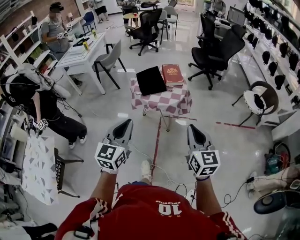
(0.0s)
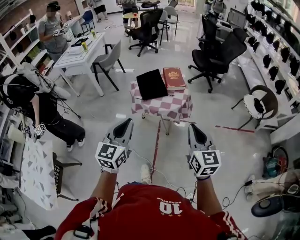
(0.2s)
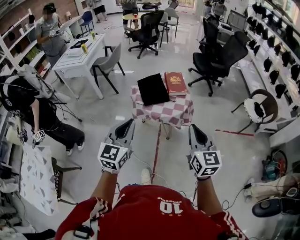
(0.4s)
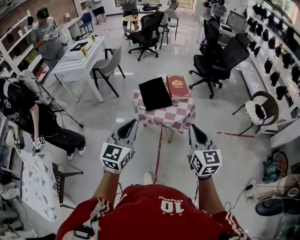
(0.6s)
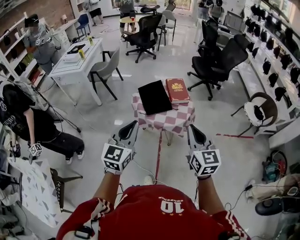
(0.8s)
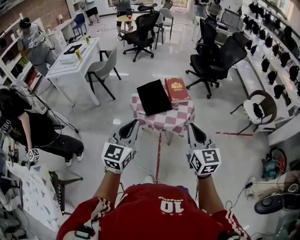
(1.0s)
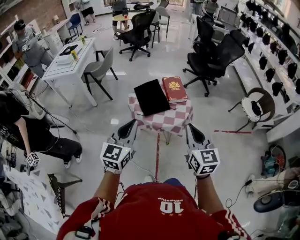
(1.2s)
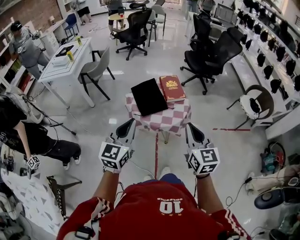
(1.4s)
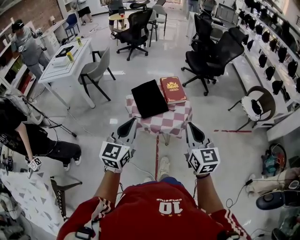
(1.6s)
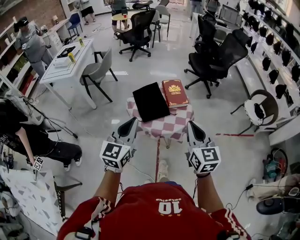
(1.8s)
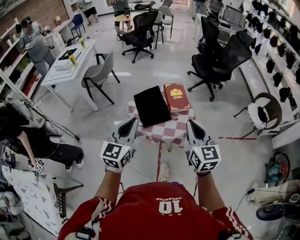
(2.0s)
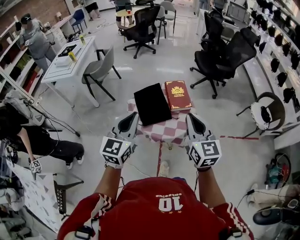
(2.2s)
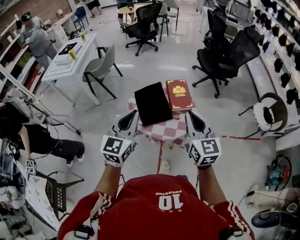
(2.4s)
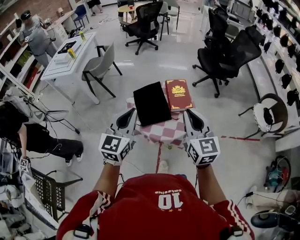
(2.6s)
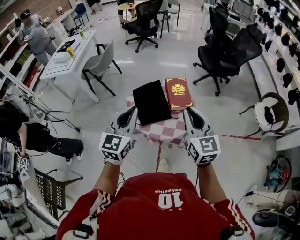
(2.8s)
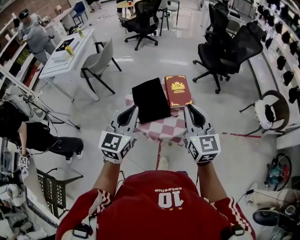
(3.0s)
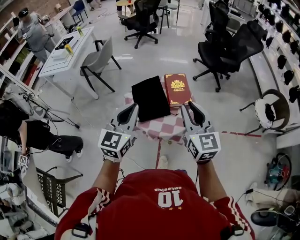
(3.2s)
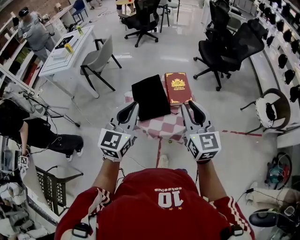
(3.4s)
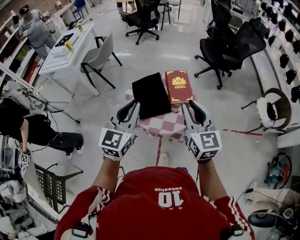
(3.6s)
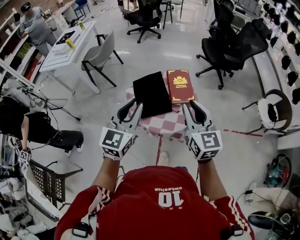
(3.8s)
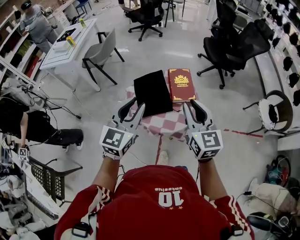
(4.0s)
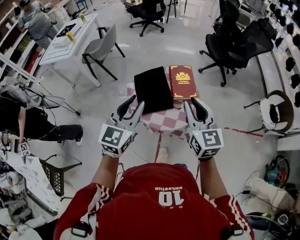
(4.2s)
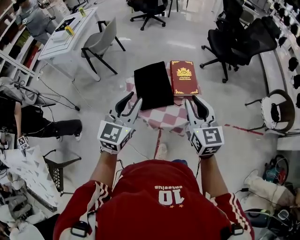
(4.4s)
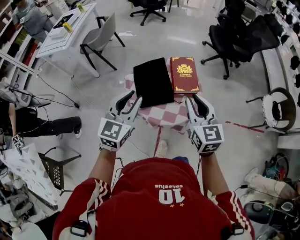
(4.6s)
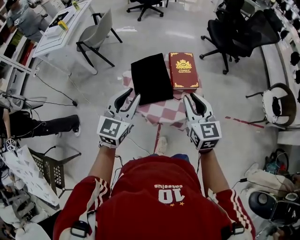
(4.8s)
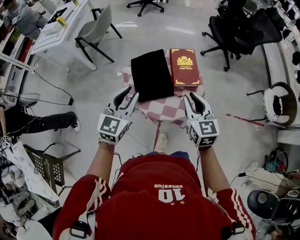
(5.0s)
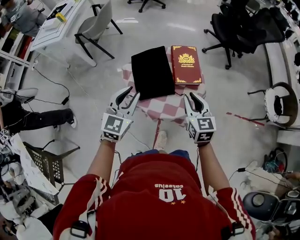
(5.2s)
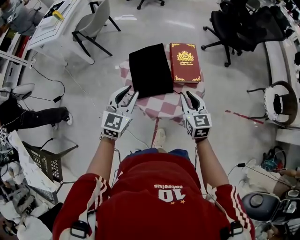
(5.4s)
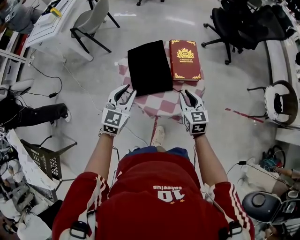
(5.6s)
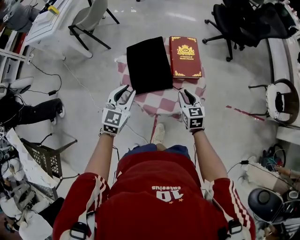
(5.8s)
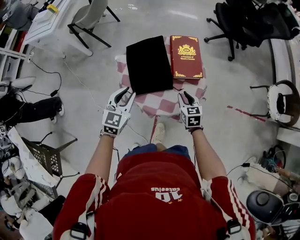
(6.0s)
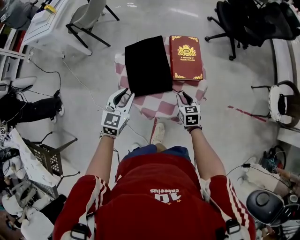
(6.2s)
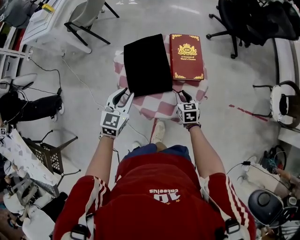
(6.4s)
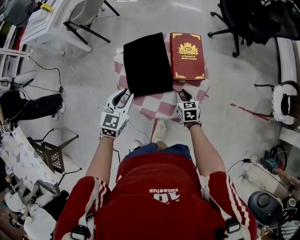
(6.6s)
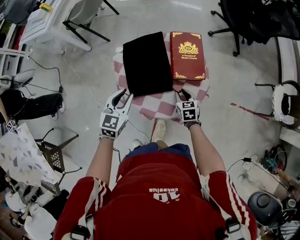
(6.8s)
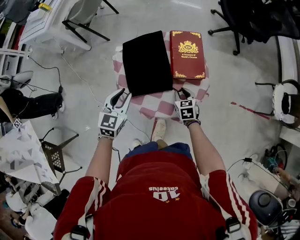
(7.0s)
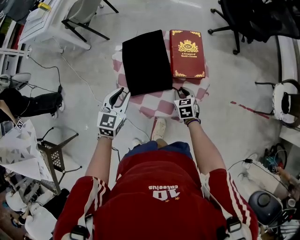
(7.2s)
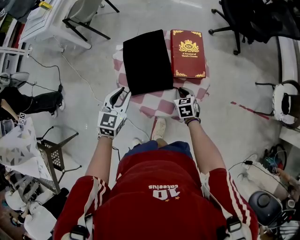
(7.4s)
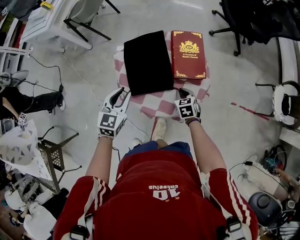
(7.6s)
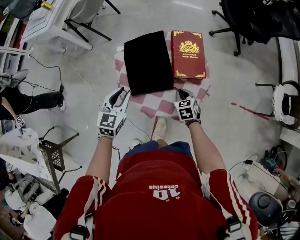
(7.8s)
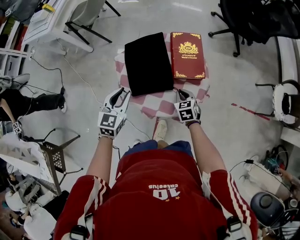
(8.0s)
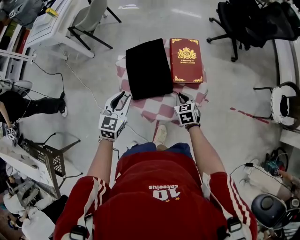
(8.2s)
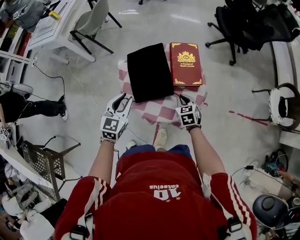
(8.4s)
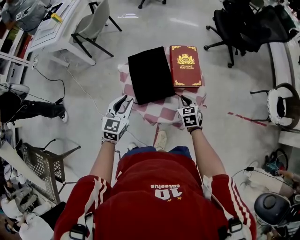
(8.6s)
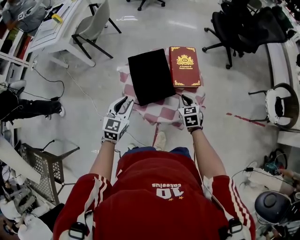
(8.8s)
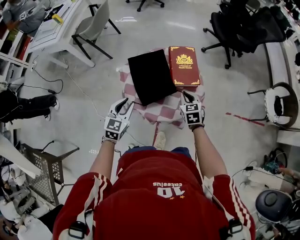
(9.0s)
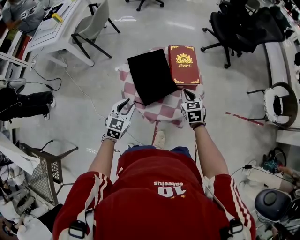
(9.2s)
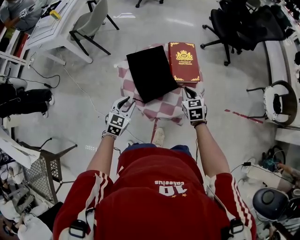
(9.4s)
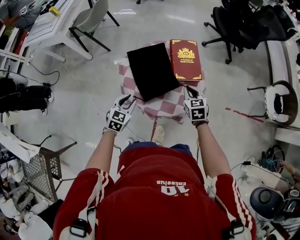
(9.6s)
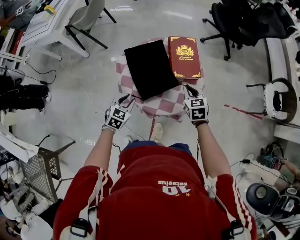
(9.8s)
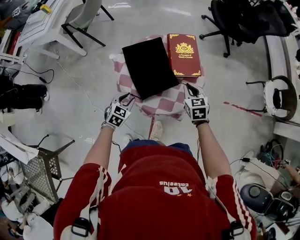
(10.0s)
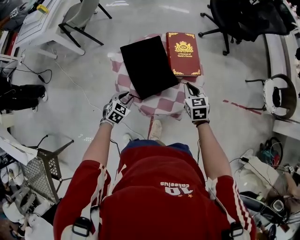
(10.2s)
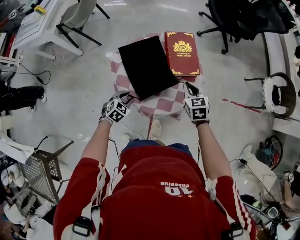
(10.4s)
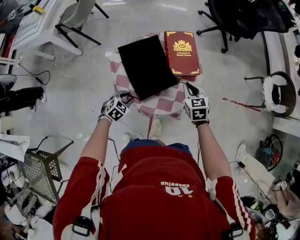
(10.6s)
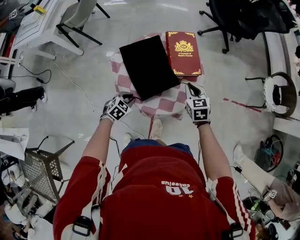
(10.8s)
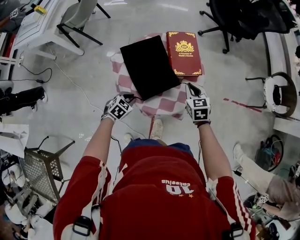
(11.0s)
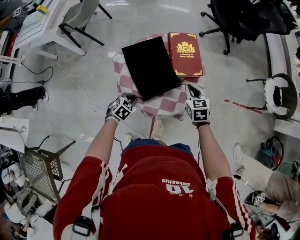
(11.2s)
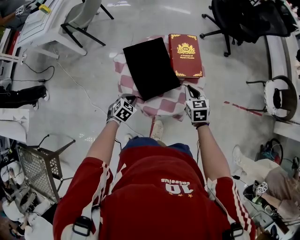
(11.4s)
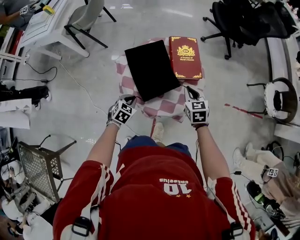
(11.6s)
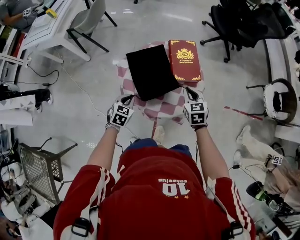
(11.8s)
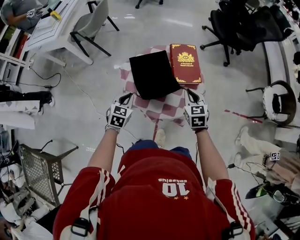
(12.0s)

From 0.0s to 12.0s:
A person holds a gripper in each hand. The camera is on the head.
From 0.0s to 1.6s: The left gripper goes about 25 cm forward; the right gripper is displaced forward and to the left by roughly 25 cm.
From 1.6s to 3.0s: The two grippers go some 15 cm forward.
From 3.0s to 4.4s: The left gripper opens up; the right gripper shifts approximately 5 cm downward.
From 4.4s to 6.0s: The two grippers go about 30 cm downward. The right gripper rotates roughly 30 degrees.
From 6.0s to 7.6s: The right gripper shifts about 10 cm downward.
From 7.6s to 9.0s: The right gripper is displaced upward by roughly 15 cm.
From 9.0s to 10.4s: The left gripper goes some 20 cm downward, and swivels approximately 30 degrees.
From 10.4s to 12.0s: The right gripper moves upward, roughly 5 cm. Meanwhile the left gripper goes some 15 cm upward, swivels about 30 degrees, and closes its fingers.

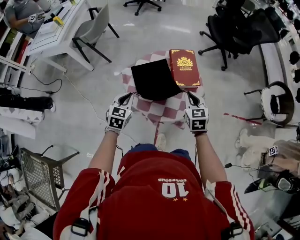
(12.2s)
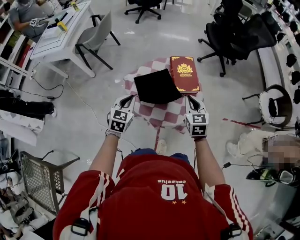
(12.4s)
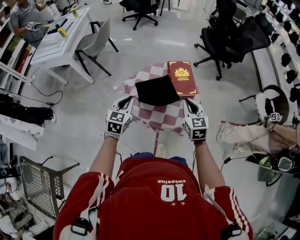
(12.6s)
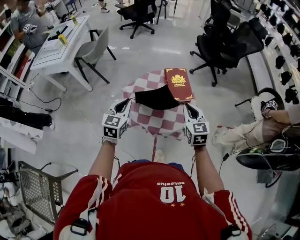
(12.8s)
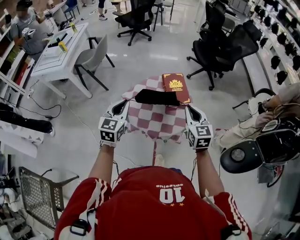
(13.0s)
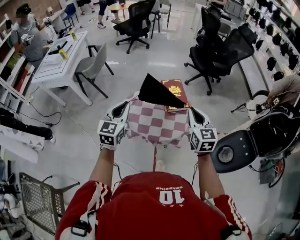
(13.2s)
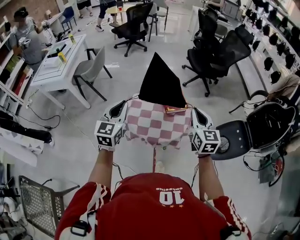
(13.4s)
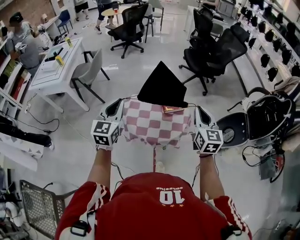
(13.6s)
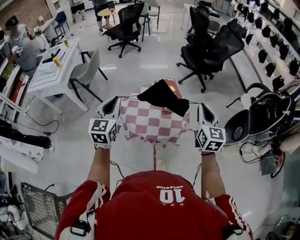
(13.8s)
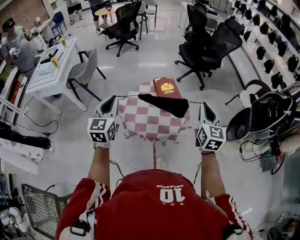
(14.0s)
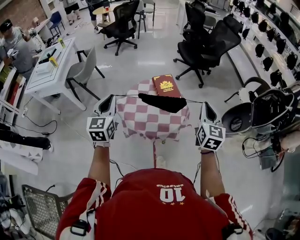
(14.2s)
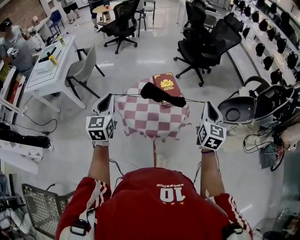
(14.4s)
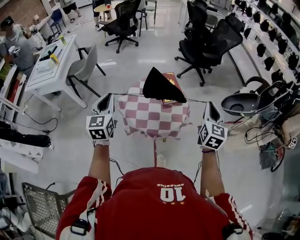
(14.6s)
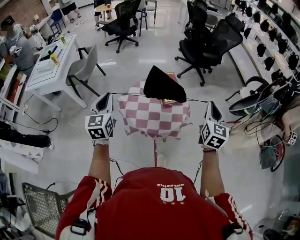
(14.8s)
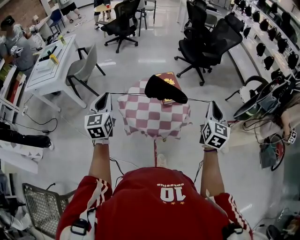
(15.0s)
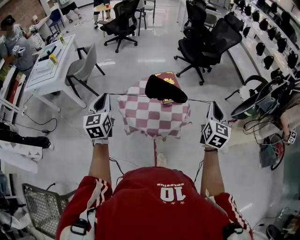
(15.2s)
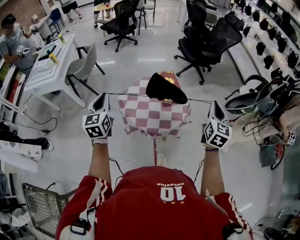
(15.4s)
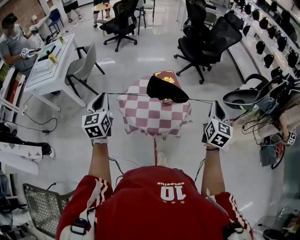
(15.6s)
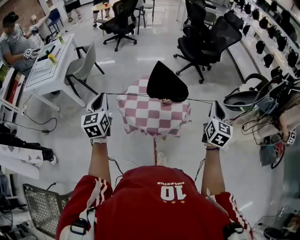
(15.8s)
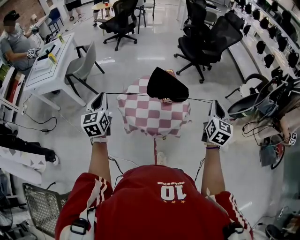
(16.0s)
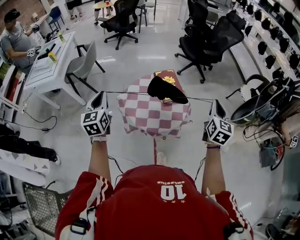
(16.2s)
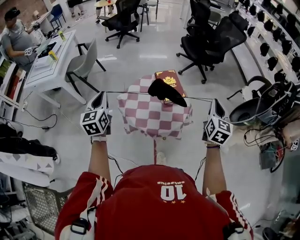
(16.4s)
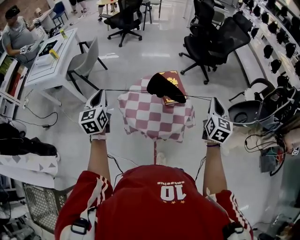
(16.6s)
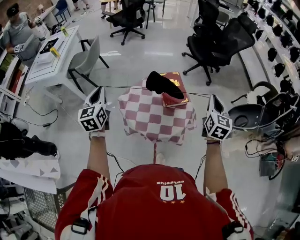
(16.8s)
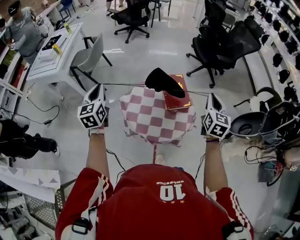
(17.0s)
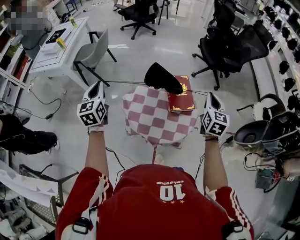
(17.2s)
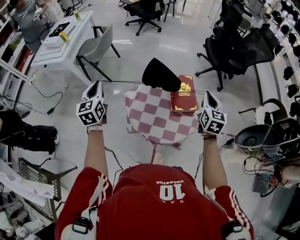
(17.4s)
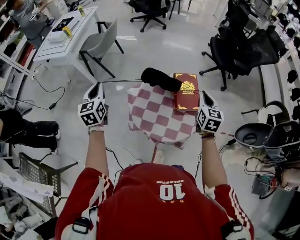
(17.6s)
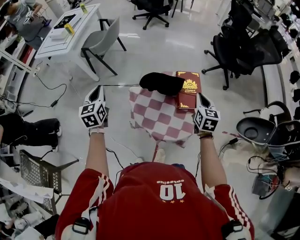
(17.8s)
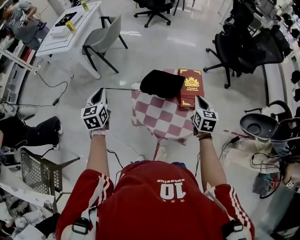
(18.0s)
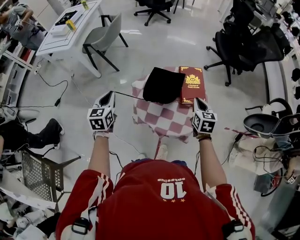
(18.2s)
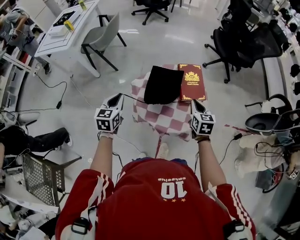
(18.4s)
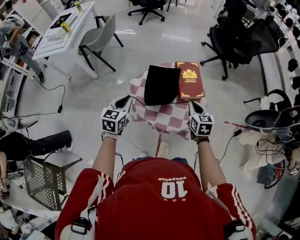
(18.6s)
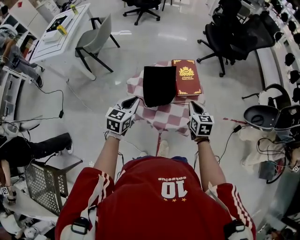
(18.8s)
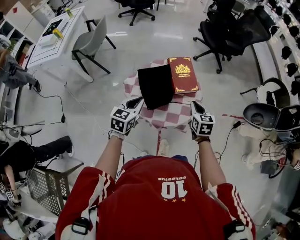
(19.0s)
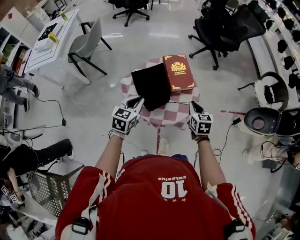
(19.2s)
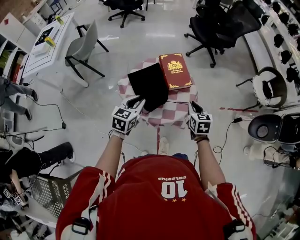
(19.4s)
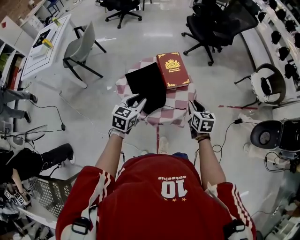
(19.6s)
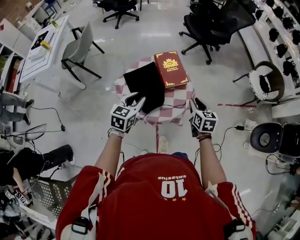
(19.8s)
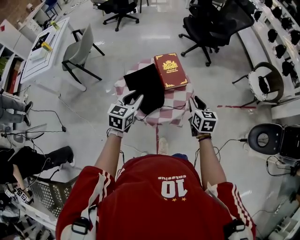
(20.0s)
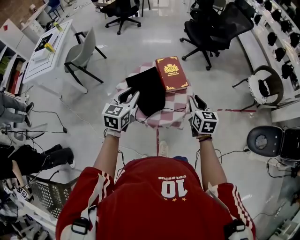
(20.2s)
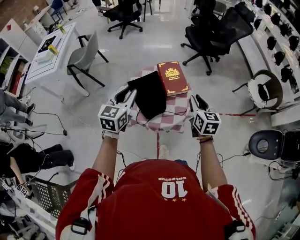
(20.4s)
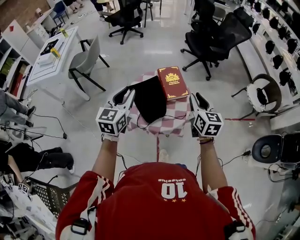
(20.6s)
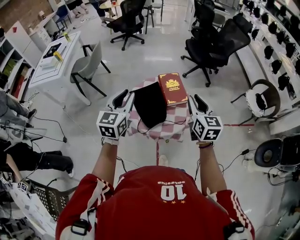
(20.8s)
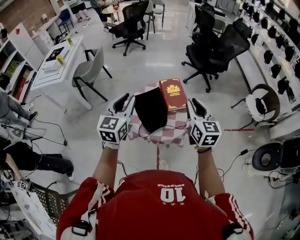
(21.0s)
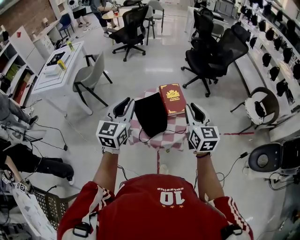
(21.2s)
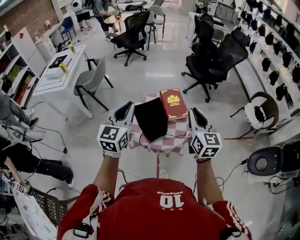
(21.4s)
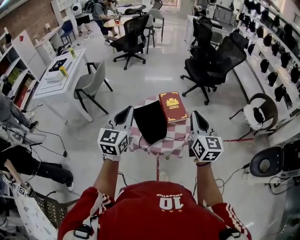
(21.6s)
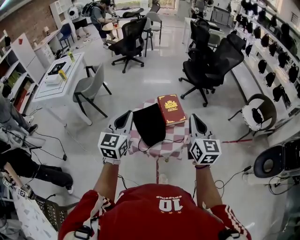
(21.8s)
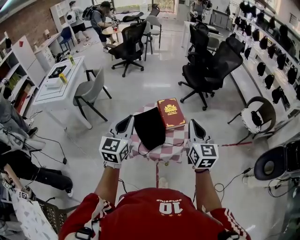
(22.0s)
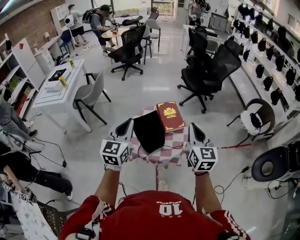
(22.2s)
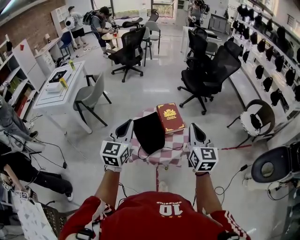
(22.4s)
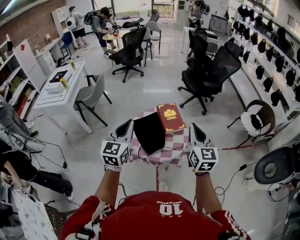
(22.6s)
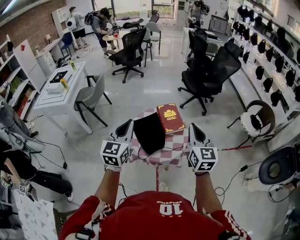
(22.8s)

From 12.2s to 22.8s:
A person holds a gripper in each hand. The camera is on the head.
From 12.2s to 13.8s: The left gripper travels upward by about 25 cm, and turns by approximately 30 degrees. The right gripper is displaced upward and backward by approximately 25 cm, and swivels approximately 30 degrees.
From 13.8s to 15.2s: The left gripper shifts some 5 cm to the left; the right gripper heads to the right, covering approximately 5 cm.
From 15.2s to 16.8s: The left gripper heads forward, covering about 10 cm. Meanwhile the right gripper goes roughly 10 cm forward.
From 16.8s to 18.2s: The right gripper moves downward, to the left and forward, about 25 cm, and rotates roughly 30 degrees. Meanwhile the left gripper goes approximately 15 cm downward.
From 18.2s to 19.8s: The left gripper moves to the right, about 25 cm, and swivels approximately 40 degrees, while the right gripper travels backward and to the right by roughly 15 cm.
From 19.8s to 21.2s: Both grippers travel together upward, about 20 cm. The left gripper changes its angle by about 30 degrees. Meanwhile the right gripper changes its angle by about 30 degrees.
From 21.2s to 22.8s: The right gripper ends up some 5 cm from where it was.

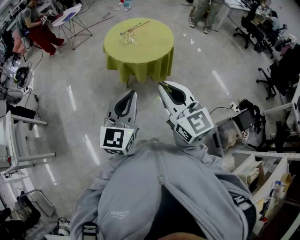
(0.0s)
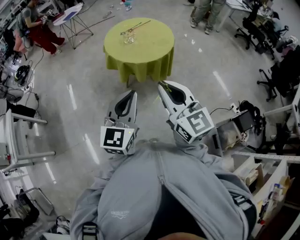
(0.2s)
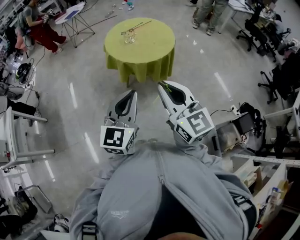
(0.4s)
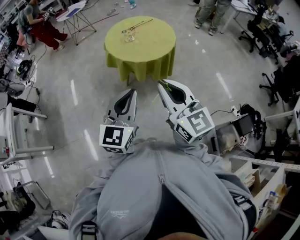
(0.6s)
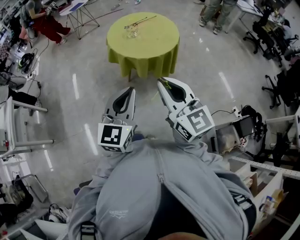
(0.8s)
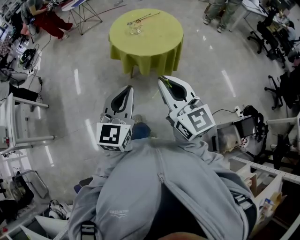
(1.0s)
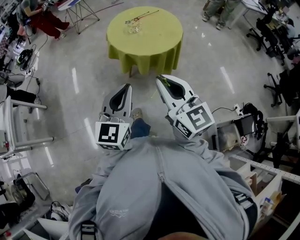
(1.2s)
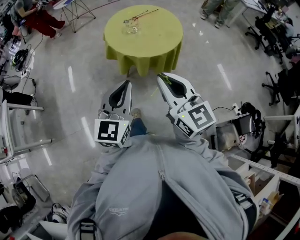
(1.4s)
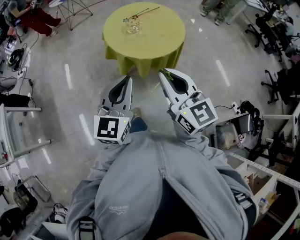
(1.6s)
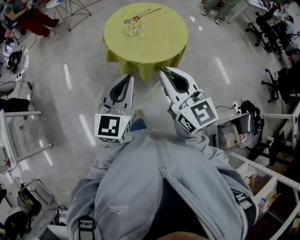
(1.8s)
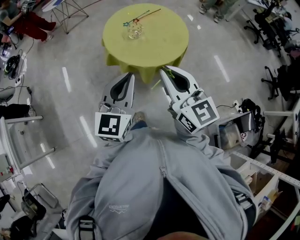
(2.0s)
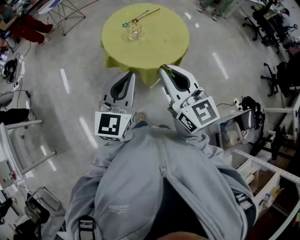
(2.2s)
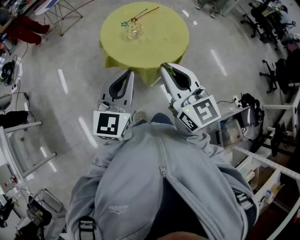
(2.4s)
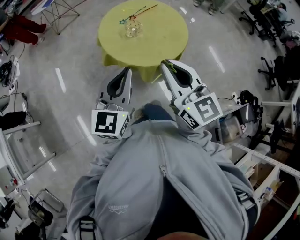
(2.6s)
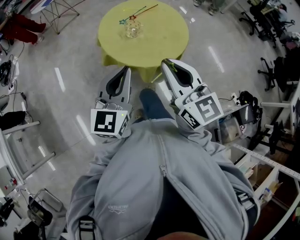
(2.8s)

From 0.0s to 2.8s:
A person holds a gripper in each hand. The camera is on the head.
From 0.0s to 1.4s: Both grippers move forward, some 10 cm.
From 1.4s to 2.8s: The two grippers go some 25 cm forward.
